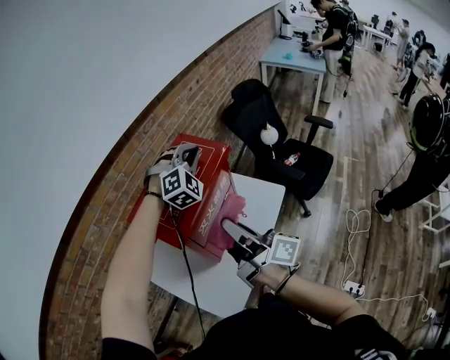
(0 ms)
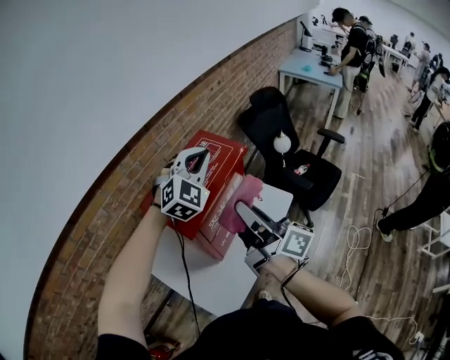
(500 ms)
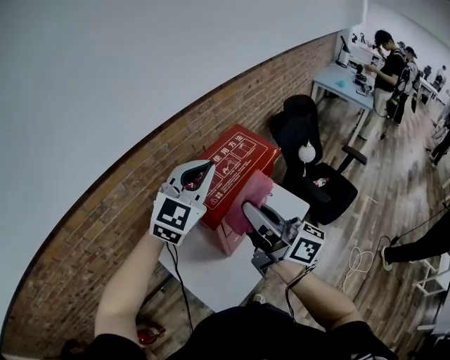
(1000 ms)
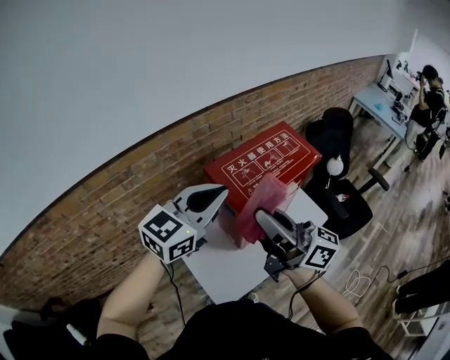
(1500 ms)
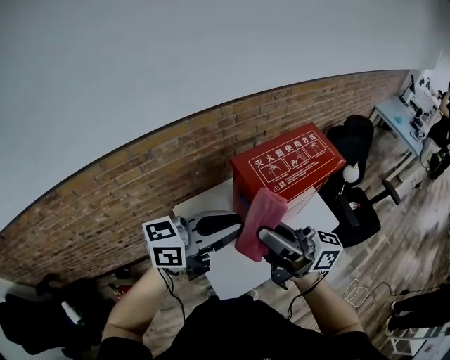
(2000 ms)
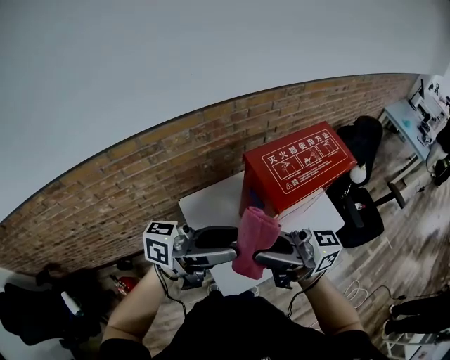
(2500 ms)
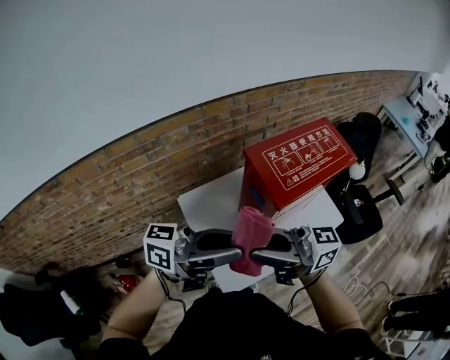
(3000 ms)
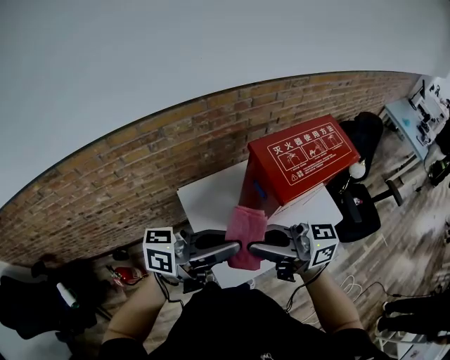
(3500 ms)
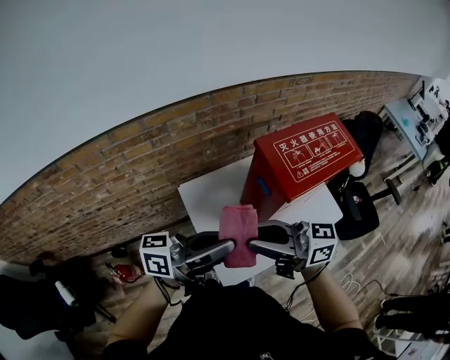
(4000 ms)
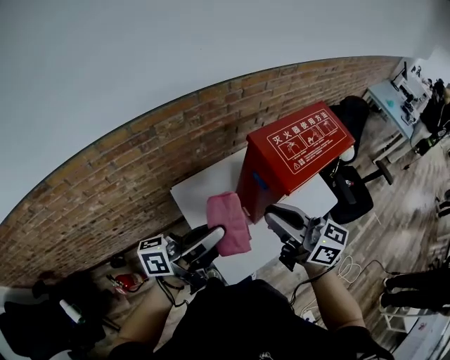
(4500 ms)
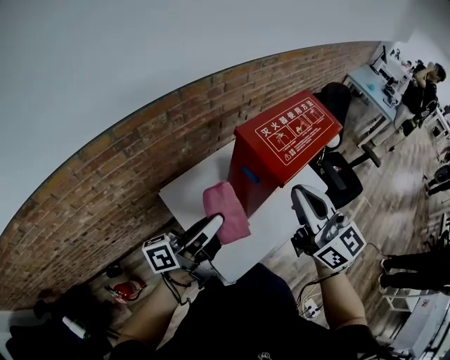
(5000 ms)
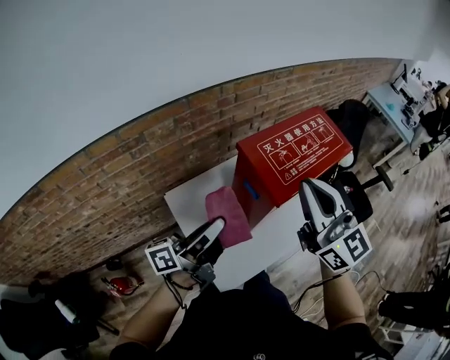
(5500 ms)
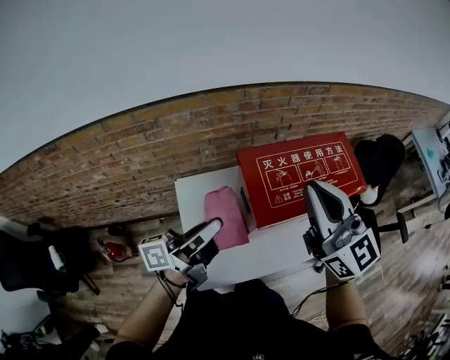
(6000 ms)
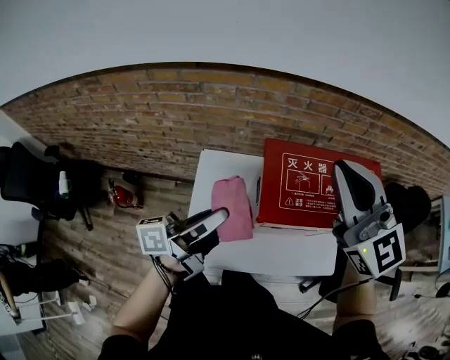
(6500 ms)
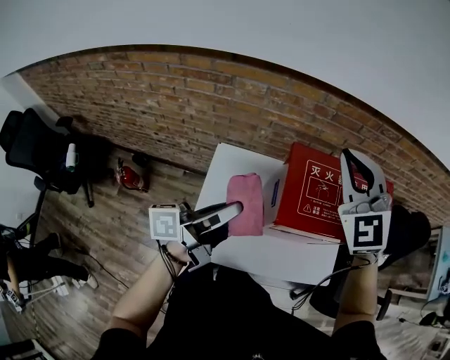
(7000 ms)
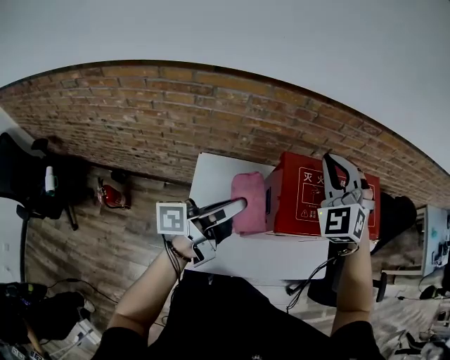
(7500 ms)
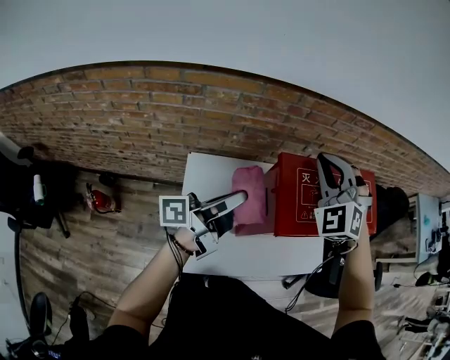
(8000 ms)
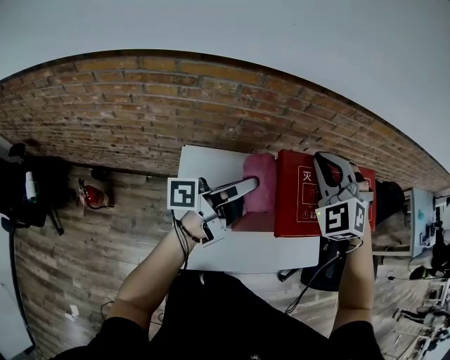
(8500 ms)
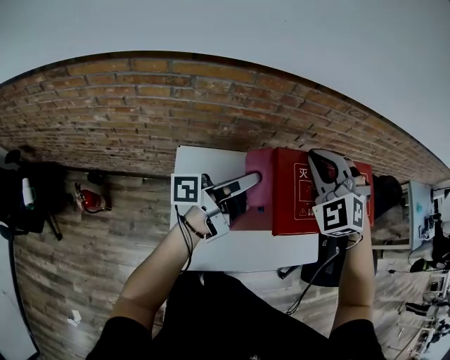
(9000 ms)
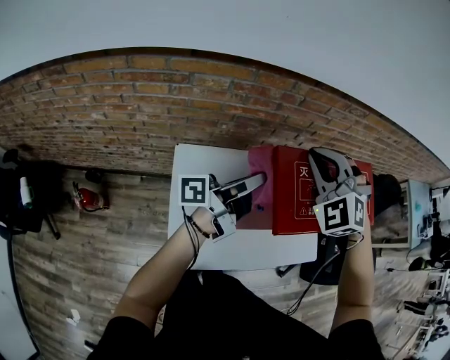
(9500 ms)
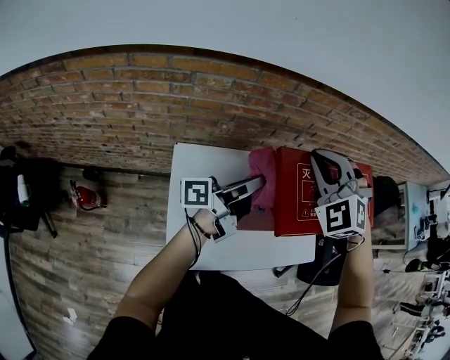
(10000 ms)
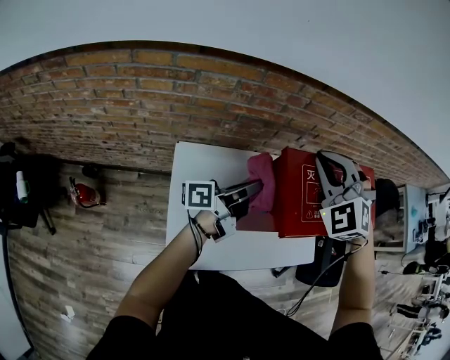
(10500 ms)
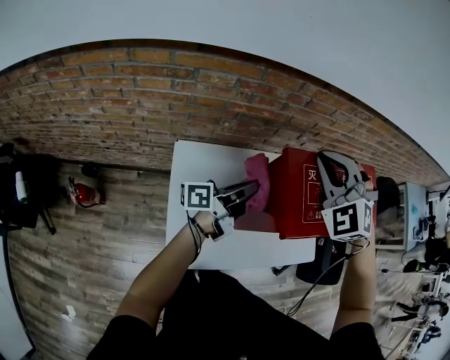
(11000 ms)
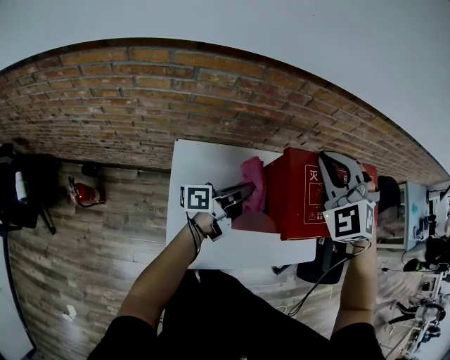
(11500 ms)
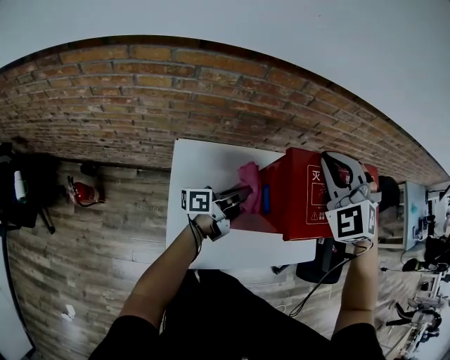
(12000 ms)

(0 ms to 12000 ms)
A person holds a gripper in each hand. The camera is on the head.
0 ms - 2000 ms: The right gripper shifts by about 20 cm, and changes its angle by roughly 50 degrees; the left gripper ends up roughly 40 cm from where it was, and rolls counterclockwise, seen from behind, by roughly 90 degrees.
2000 ms - 4000 ms: The left gripper changes place by some 10 cm, changes its angle by about 20 degrees, and opens and closes again, while the right gripper moves roughly 10 cm, and changes its angle by about 20 degrees.
4000 ms - 6000 ms: The left gripper ends up some 10 cm from where it was, and rotates some 30 degrees; the right gripper moves some 25 cm, and turns by approximately 50 degrees.
6000 ms - 8000 ms: The left gripper heads forward, covering approximately 5 cm, while the right gripper heads forward, downward and to the left, covering some 15 cm, and twists approximately 60 degrees counterclockwise, seen from behind.
8000 ms - 10000 ms: The left gripper goes approximately 5 cm forward.
10000 ms - 12000 ms: The left gripper is displaced downward by about 15 cm.

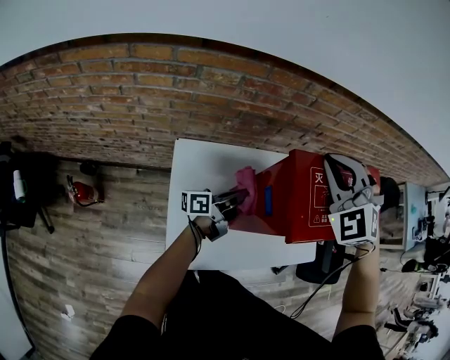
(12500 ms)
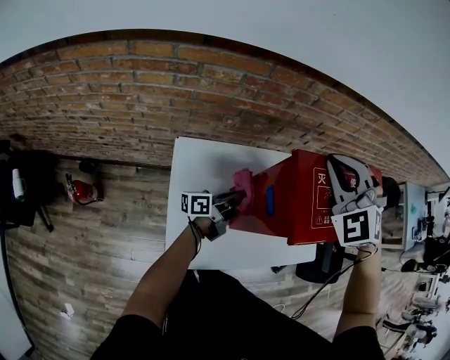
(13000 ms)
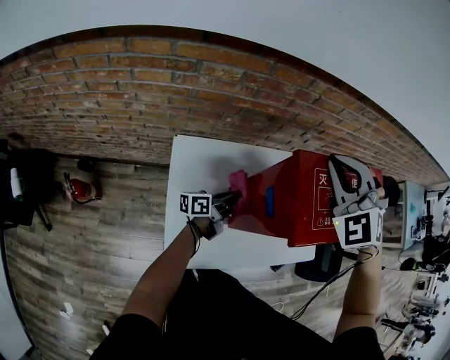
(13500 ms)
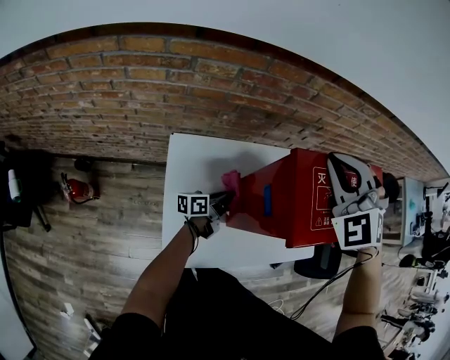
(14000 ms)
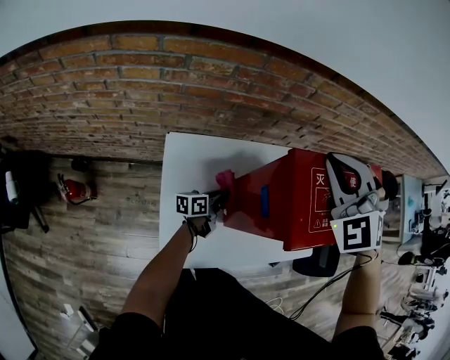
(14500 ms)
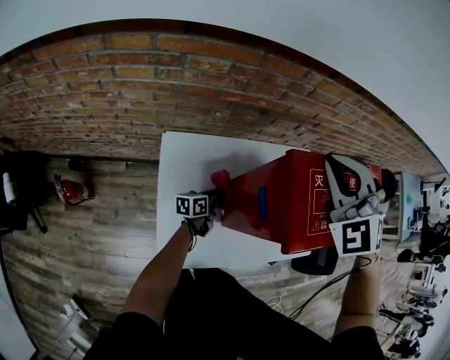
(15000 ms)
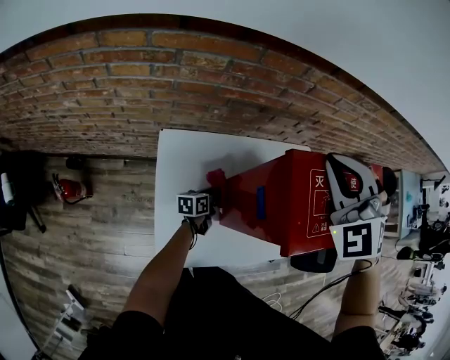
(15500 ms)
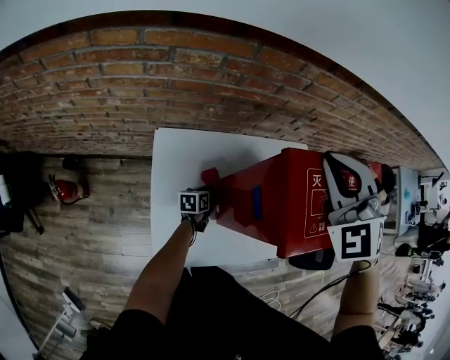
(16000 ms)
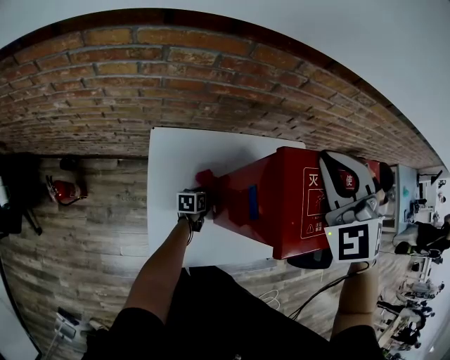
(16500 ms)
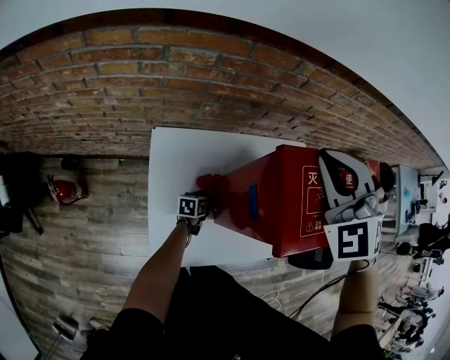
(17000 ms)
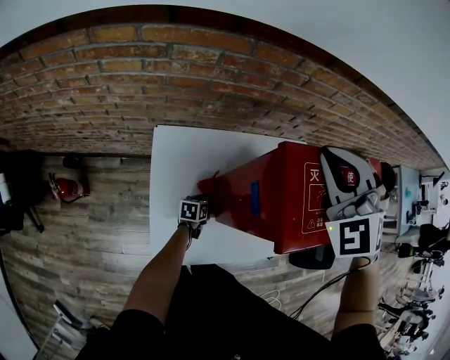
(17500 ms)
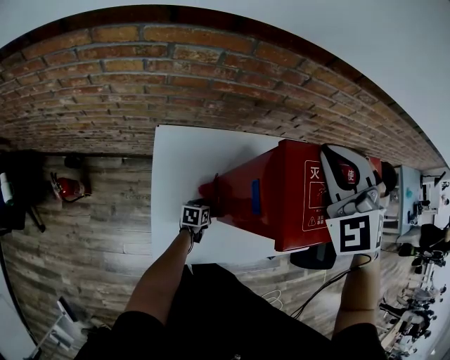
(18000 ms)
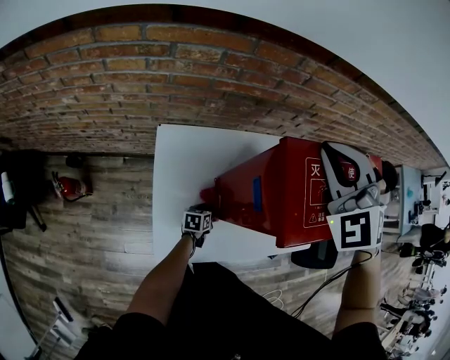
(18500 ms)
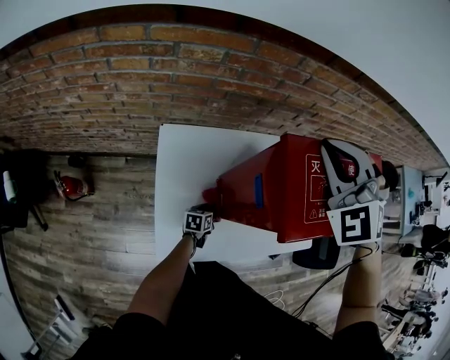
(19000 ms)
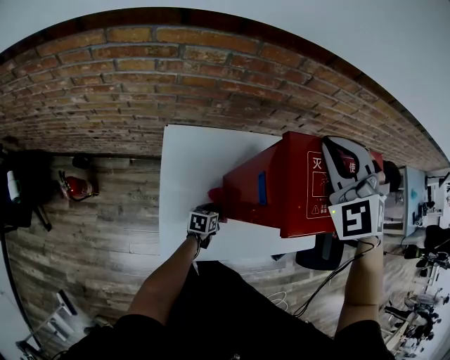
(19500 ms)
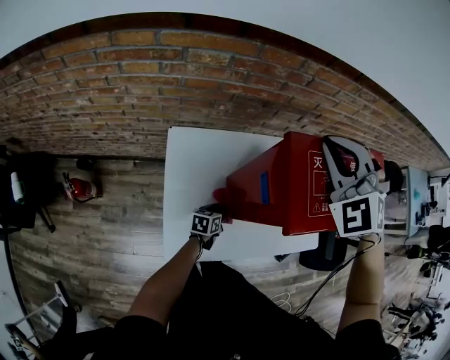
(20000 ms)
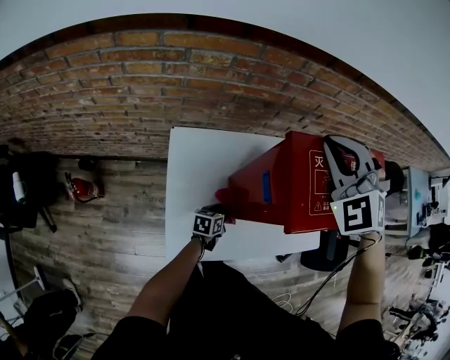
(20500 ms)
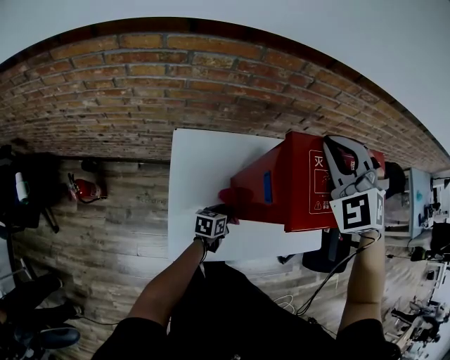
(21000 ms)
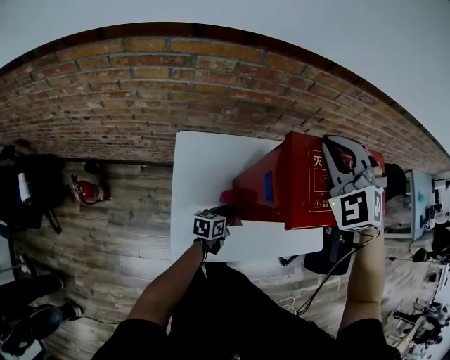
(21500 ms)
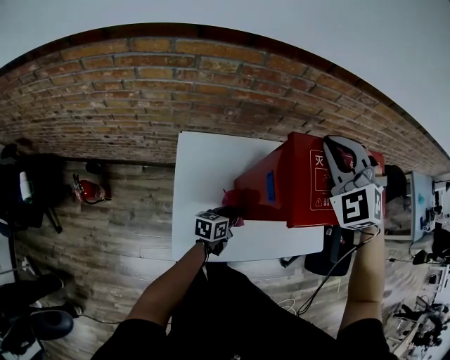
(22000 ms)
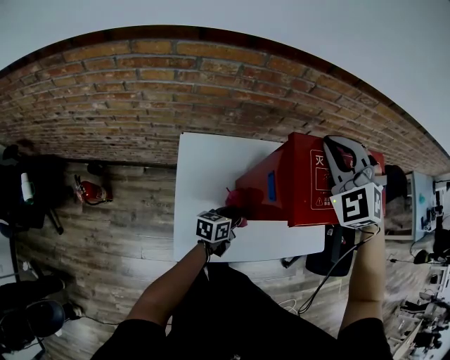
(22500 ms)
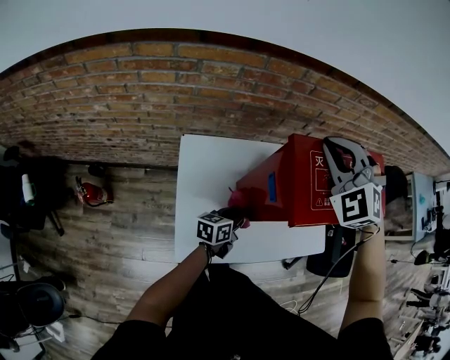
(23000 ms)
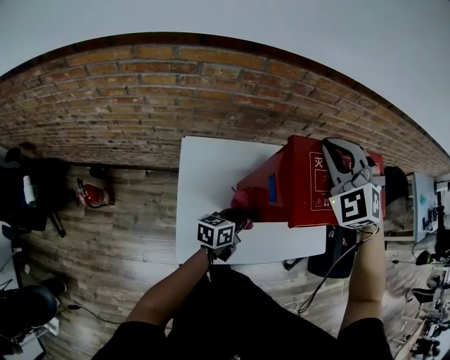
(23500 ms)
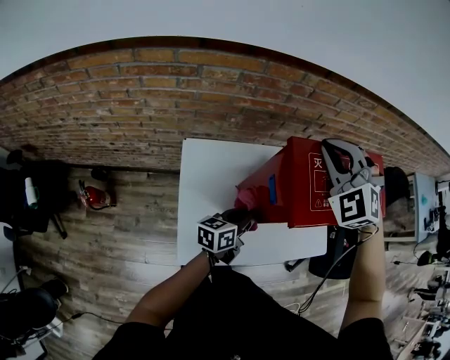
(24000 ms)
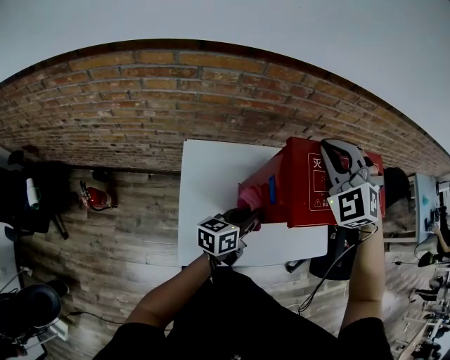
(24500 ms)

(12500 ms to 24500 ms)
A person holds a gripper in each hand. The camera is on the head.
12500 ms - 14500 ms: The left gripper shifts some 15 cm downward, and changes its angle by some 20 degrees.
14500 ms - 16500 ms: The left gripper shifts some 15 cm downward, and turns by approximately 30 degrees.
16500 ms - 18500 ms: The left gripper goes about 10 cm backward.
18500 ms - 20500 ms: The left gripper moves upward, roughly 10 cm.
20500 ms - 22500 ms: The left gripper moves upward, approximately 10 cm.
22500 ms - 24500 ms: The left gripper is displaced upward by some 15 cm.

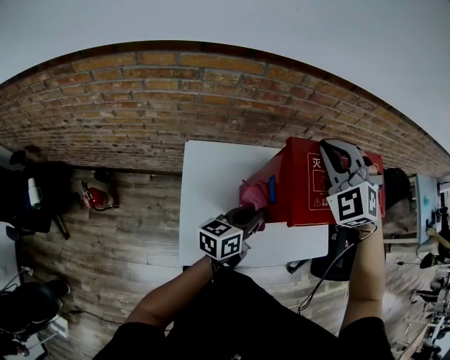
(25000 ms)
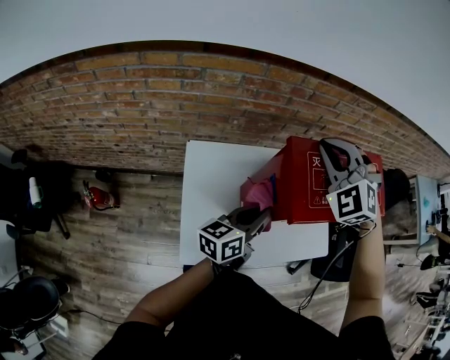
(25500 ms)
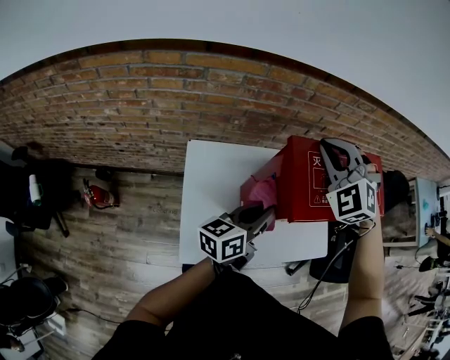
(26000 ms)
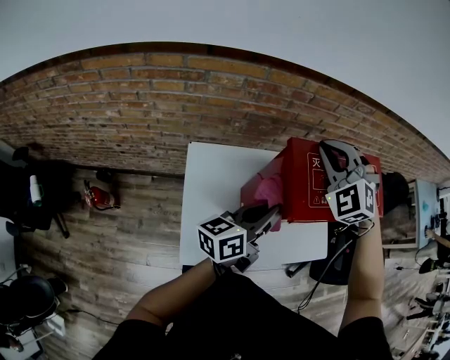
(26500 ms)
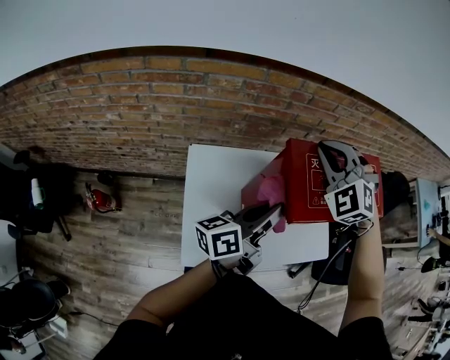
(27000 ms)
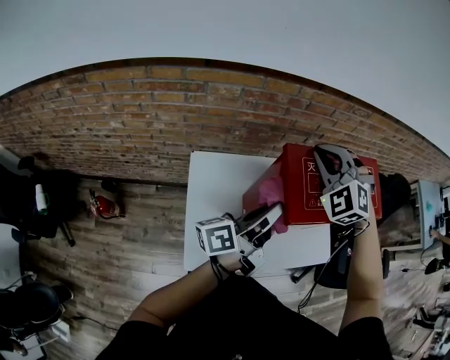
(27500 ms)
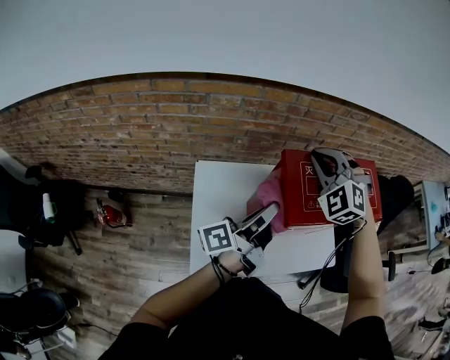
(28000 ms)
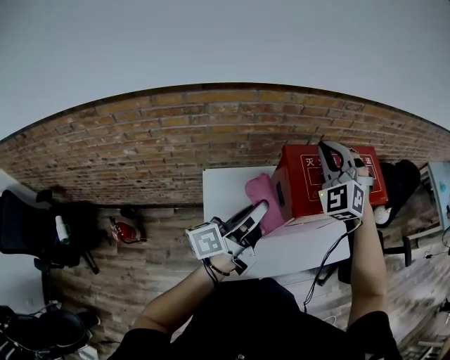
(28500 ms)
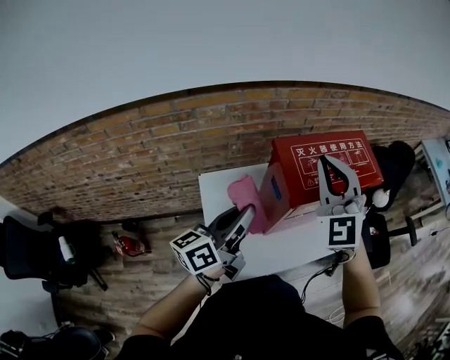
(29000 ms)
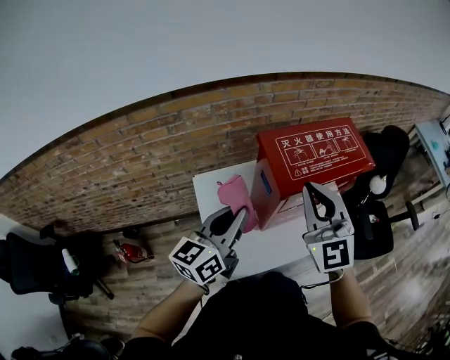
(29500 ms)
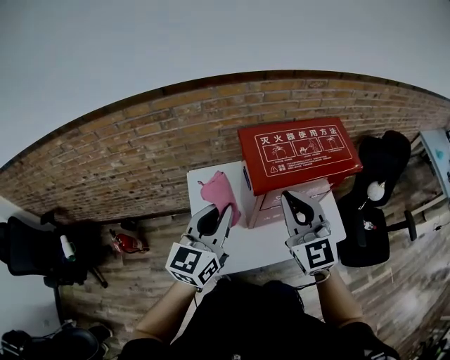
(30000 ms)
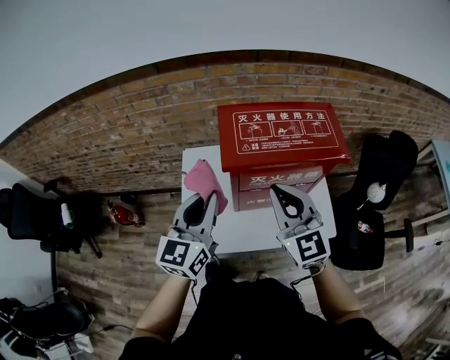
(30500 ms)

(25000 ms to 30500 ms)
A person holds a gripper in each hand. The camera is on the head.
25000 ms - 27000 ms: The left gripper heads upward, covering about 10 cm, and turns by roughly 20 degrees.
27000 ms - 28500 ms: The left gripper moves to the left, some 5 cm.
28500 ms - 30500 ms: The right gripper moves backward and to the right, some 25 cm, and rolls clockwise, seen from behind, by about 50 degrees, while the left gripper goes roughly 10 cm backward and to the right, and rolls clockwise, seen from behind, by about 60 degrees.
